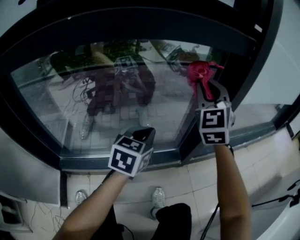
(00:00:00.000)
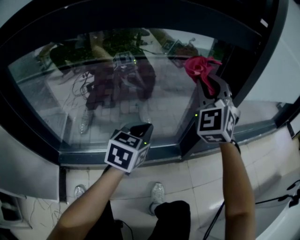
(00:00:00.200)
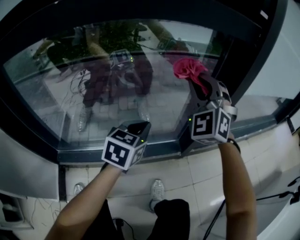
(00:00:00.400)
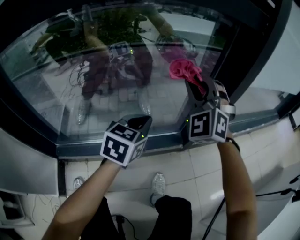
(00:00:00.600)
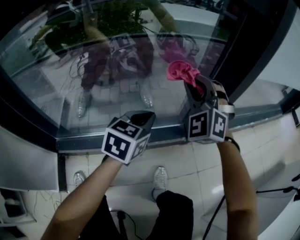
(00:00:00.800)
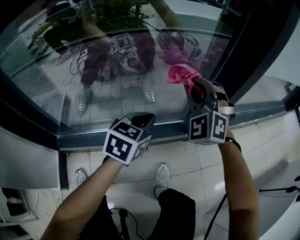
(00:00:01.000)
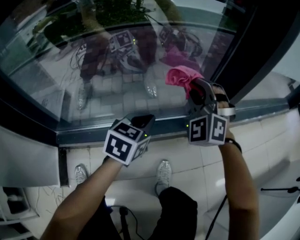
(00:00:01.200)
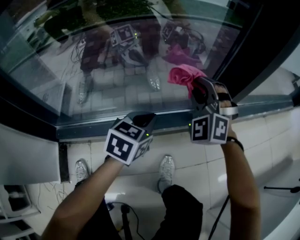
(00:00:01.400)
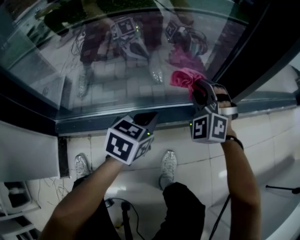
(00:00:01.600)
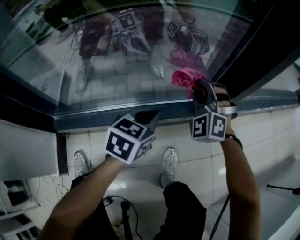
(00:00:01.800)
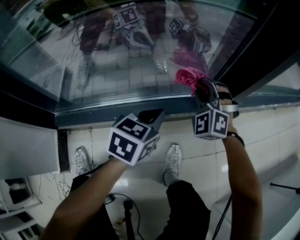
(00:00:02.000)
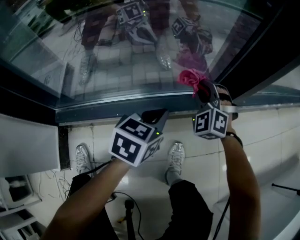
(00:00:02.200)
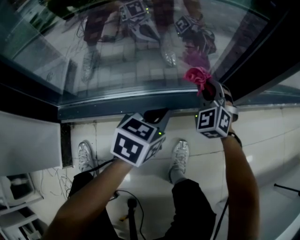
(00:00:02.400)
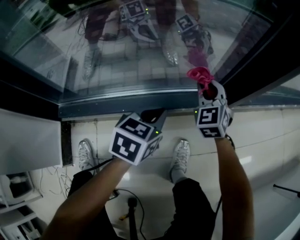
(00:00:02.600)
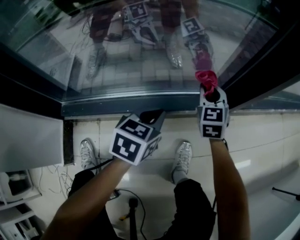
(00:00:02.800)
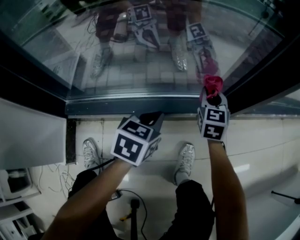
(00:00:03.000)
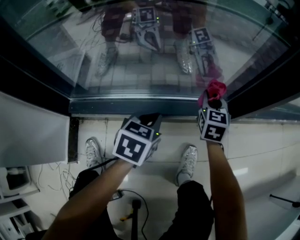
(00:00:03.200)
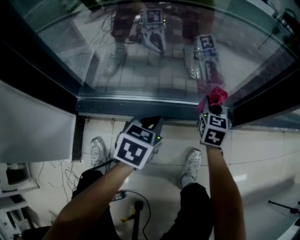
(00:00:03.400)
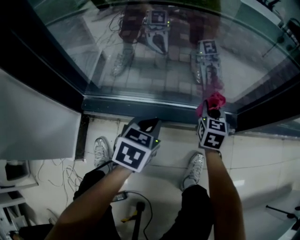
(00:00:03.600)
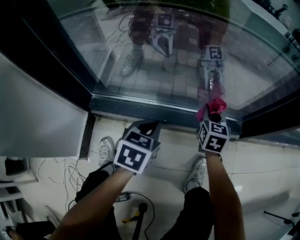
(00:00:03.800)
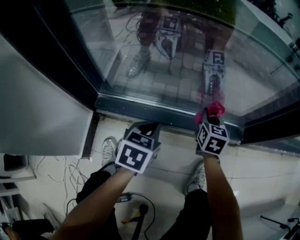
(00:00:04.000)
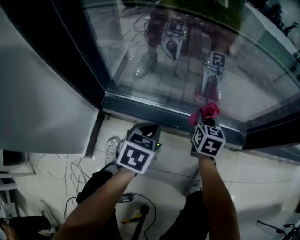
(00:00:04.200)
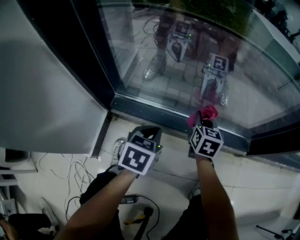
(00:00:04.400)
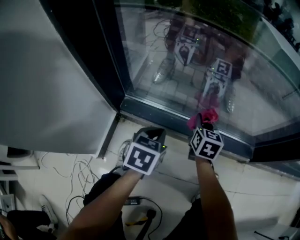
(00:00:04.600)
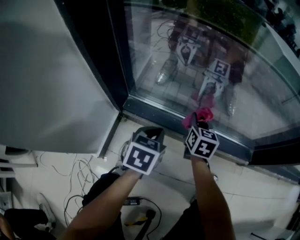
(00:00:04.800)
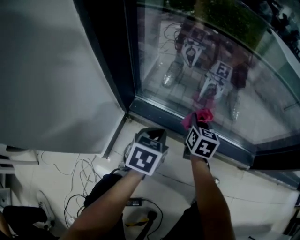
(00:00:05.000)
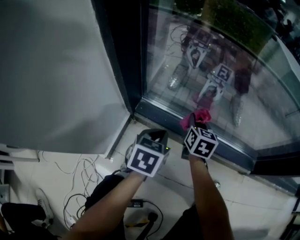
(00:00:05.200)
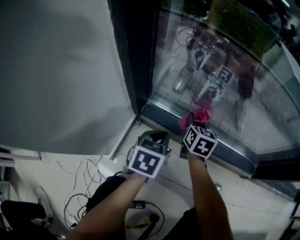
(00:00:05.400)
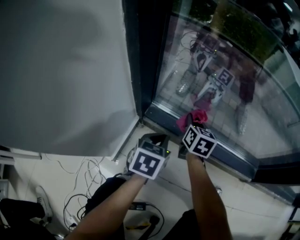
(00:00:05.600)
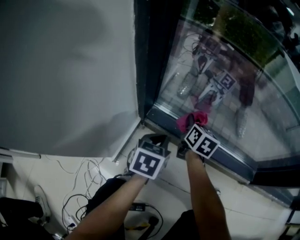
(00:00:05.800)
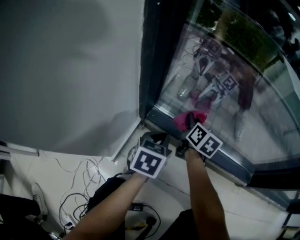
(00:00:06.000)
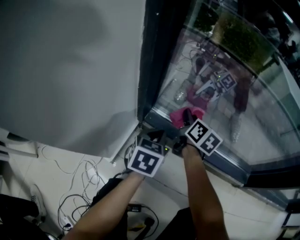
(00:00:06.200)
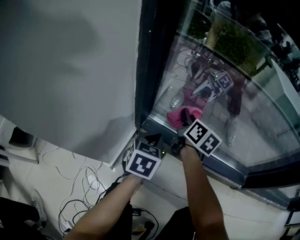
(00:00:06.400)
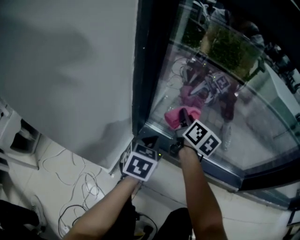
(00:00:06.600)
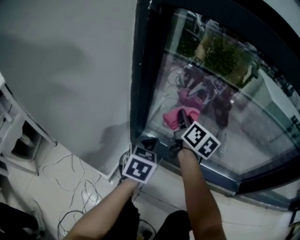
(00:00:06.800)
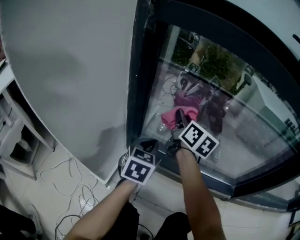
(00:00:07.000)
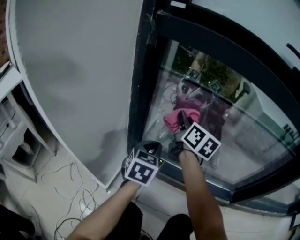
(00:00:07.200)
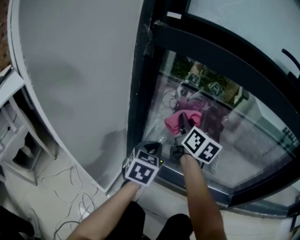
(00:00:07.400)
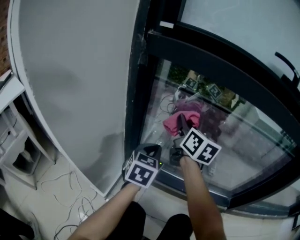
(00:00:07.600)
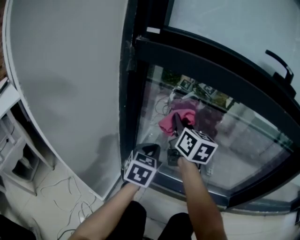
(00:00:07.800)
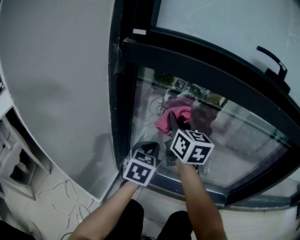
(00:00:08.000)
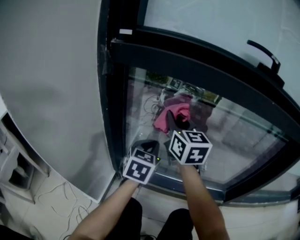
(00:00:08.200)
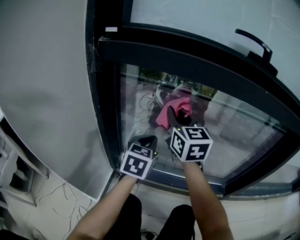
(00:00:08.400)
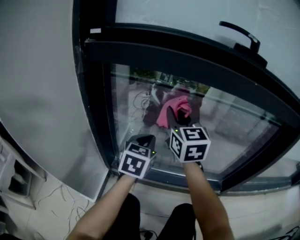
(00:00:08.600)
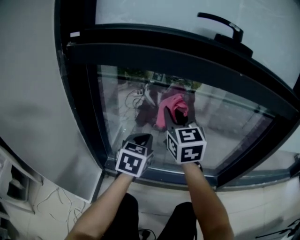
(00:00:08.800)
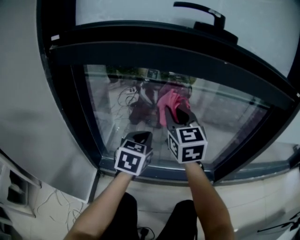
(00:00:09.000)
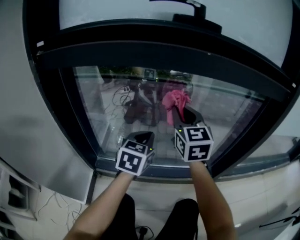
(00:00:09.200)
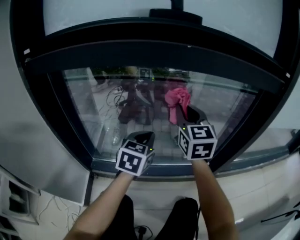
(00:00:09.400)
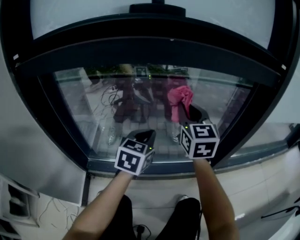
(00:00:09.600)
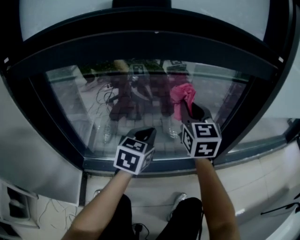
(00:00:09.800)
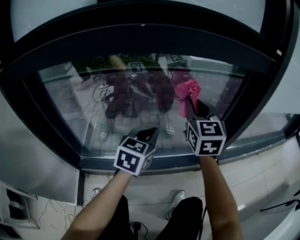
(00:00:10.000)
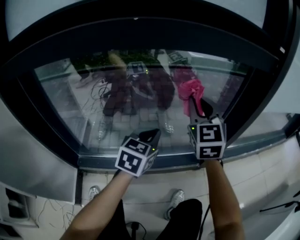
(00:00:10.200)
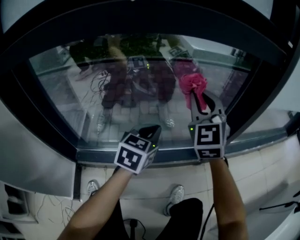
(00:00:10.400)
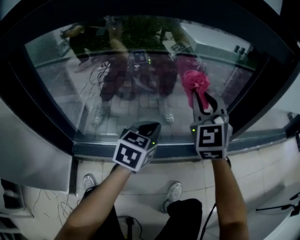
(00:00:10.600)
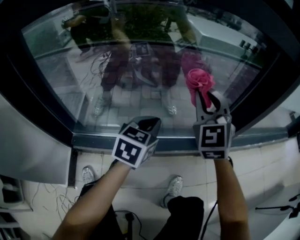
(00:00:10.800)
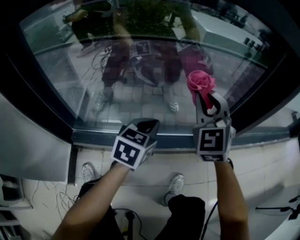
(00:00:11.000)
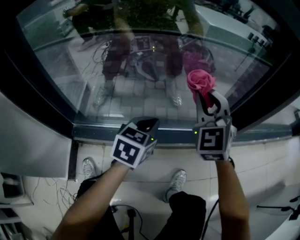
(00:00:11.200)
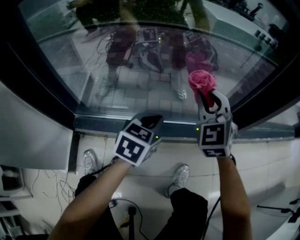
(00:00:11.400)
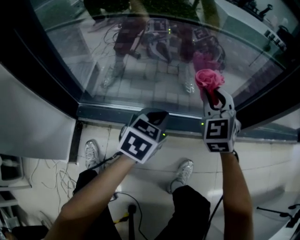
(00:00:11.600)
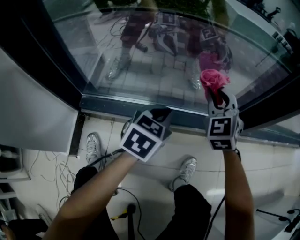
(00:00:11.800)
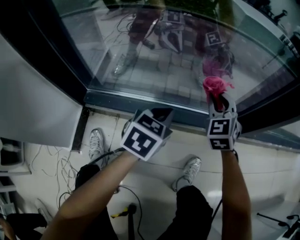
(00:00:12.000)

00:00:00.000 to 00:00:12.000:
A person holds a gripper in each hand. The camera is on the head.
00:00:00.000 to 00:00:01.600: The left gripper is displaced downward by roughly 20 cm. The right gripper moves downward, about 30 cm, and turns by about 40 degrees.
00:00:01.600 to 00:00:03.000: The right gripper moves downward, approximately 10 cm, and rolls clockwise, seen from behind, by roughly 60 degrees; the left gripper travels to the left and downward by roughly 10 cm.
00:00:03.000 to 00:00:04.400: Both grippers move to the left, roughly 25 cm.
00:00:04.400 to 00:00:06.000: The right gripper goes about 25 cm to the left, and swivels about 20 degrees; the left gripper moves to the left, approximately 15 cm.
00:00:06.000 to 00:00:07.600: The right gripper travels upward by approximately 35 cm, and swivels about 30 degrees; the left gripper goes some 20 cm upward, and turns by some 20 degrees.
00:00:07.600 to 00:00:09.000: Both grippers move to the right, some 20 cm. The right gripper changes its angle by approximately 40 degrees.
00:00:09.000 to 00:00:10.400: Both grippers travel together to the right, roughly 25 cm. The right gripper turns by about 30 degrees.
00:00:10.400 to 00:00:12.000: The right gripper shifts approximately 30 cm downward, and changes its angle by approximately 20 degrees. The left gripper goes some 15 cm downward.

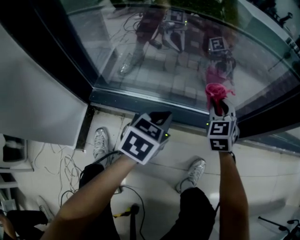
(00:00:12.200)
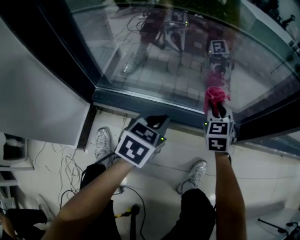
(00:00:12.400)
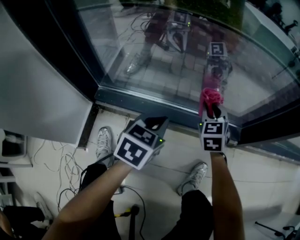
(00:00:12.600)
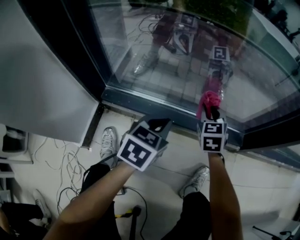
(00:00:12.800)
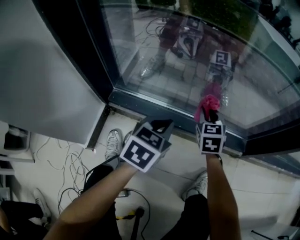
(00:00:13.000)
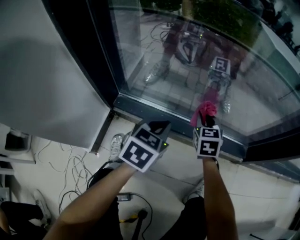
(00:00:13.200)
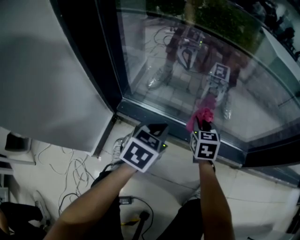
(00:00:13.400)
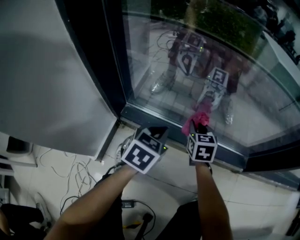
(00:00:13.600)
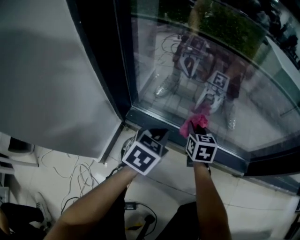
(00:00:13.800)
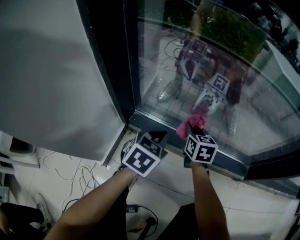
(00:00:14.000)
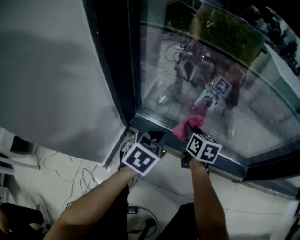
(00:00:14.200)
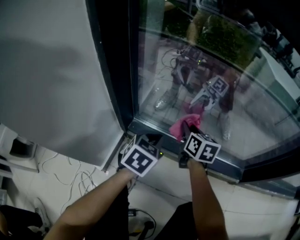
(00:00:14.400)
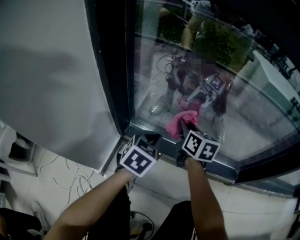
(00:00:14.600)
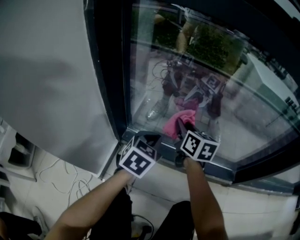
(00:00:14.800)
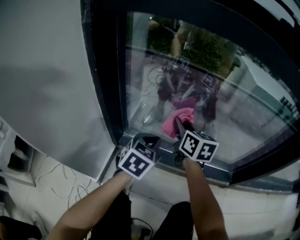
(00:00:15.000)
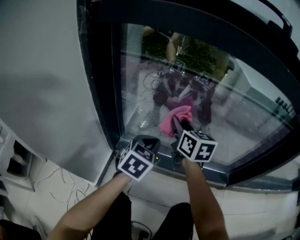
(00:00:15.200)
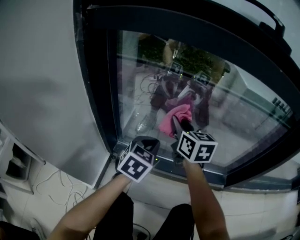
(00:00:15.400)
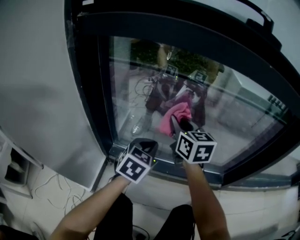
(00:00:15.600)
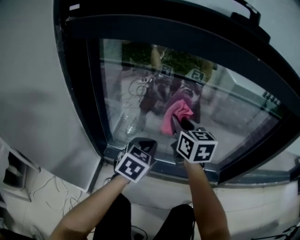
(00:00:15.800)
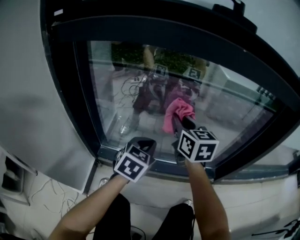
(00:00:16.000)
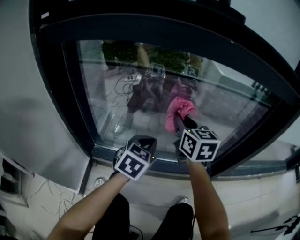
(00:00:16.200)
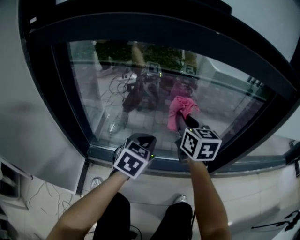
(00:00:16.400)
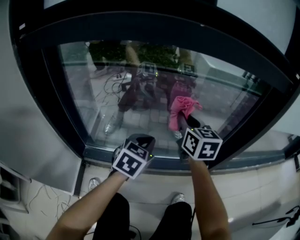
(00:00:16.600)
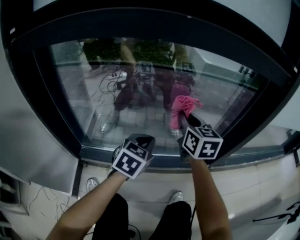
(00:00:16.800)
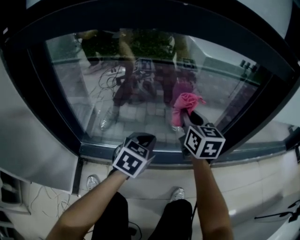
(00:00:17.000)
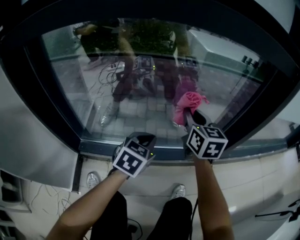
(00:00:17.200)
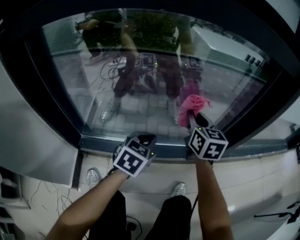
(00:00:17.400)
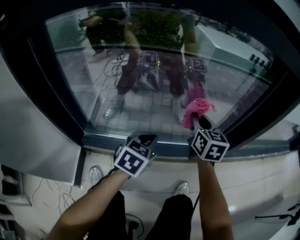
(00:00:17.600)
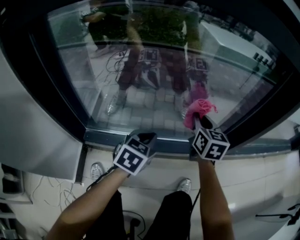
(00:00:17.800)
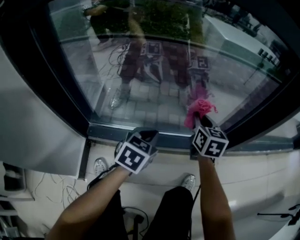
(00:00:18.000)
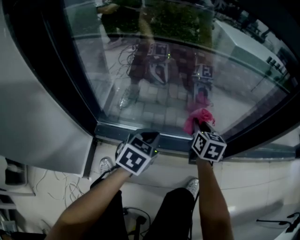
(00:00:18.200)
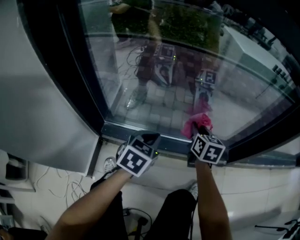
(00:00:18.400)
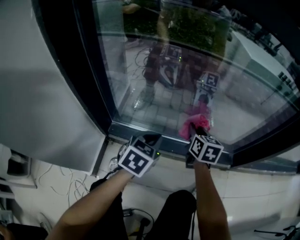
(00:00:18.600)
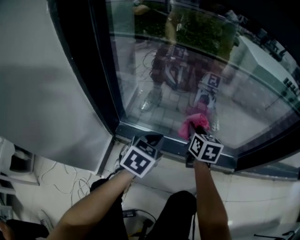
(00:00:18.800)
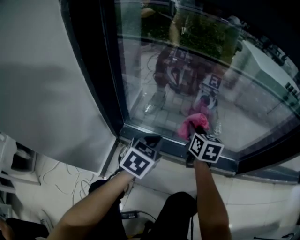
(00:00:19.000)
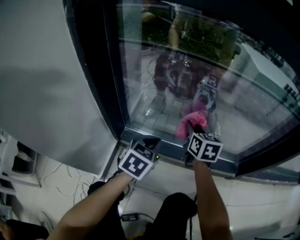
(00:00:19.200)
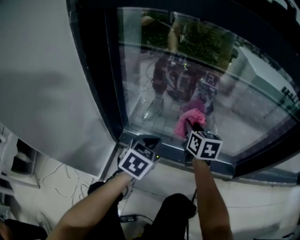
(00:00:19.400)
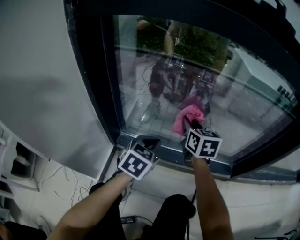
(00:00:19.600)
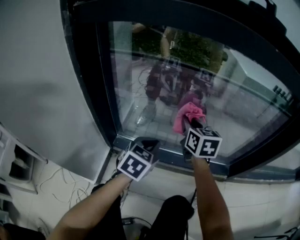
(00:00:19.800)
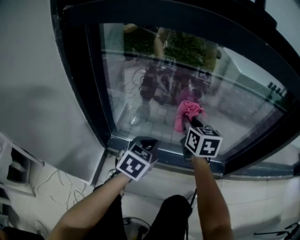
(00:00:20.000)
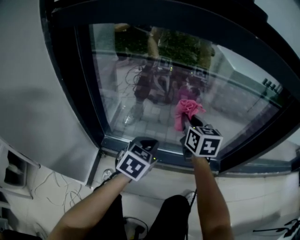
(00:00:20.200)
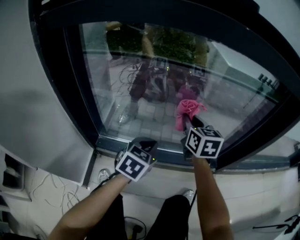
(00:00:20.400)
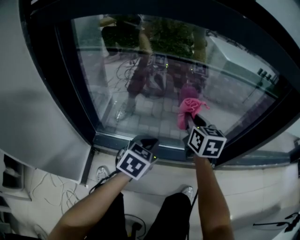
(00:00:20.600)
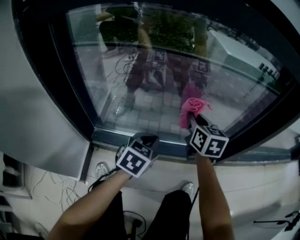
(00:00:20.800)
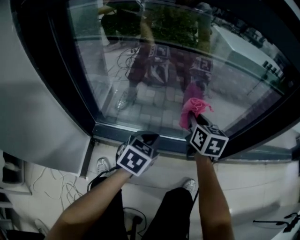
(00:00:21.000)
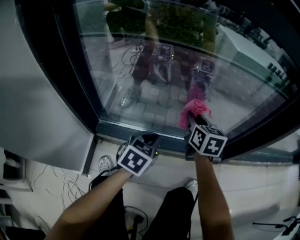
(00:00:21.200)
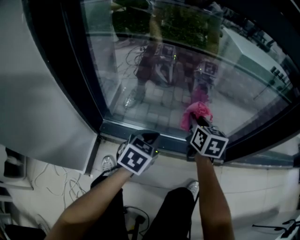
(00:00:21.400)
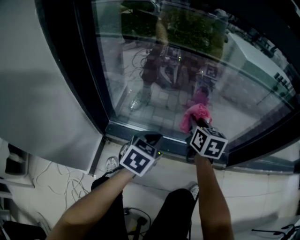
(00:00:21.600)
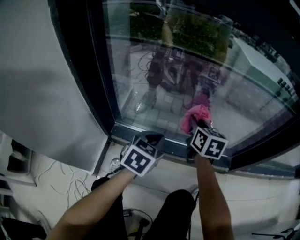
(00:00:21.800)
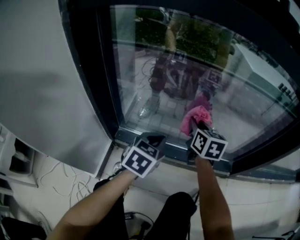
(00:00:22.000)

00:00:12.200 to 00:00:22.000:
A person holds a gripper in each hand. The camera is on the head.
00:00:12.200 to 00:00:13.600: Both grippers move to the left, about 20 cm. The right gripper swivels roughly 30 degrees.
00:00:13.600 to 00:00:15.000: The left gripper shifts approximately 10 cm upward. Meanwhile the right gripper is displaced upward and to the left by roughly 20 cm, and changes its angle by approximately 30 degrees.
00:00:15.000 to 00:00:16.400: The left gripper moves to the right, approximately 20 cm. Meanwhile the right gripper goes some 25 cm to the right and upward, and changes its angle by about 20 degrees.
00:00:16.400 to 00:00:17.800: The right gripper heads downward and to the right, covering roughly 15 cm. Meanwhile the left gripper goes about 10 cm downward.
00:00:17.800 to 00:00:19.200: Both grippers move to the left, roughly 20 cm.
00:00:19.200 to 00:00:20.600: The right gripper travels to the right and upward by some 15 cm, while the left gripper travels to the right by roughly 15 cm.
00:00:20.600 to 00:00:22.000: Both grippers travel together to the left, some 10 cm.

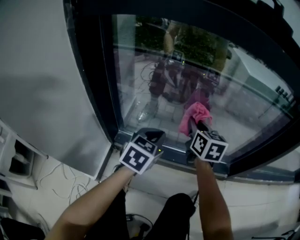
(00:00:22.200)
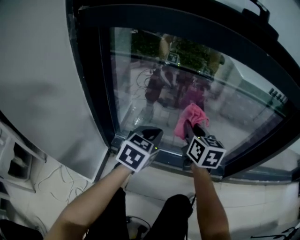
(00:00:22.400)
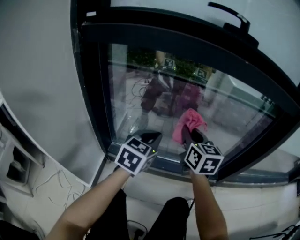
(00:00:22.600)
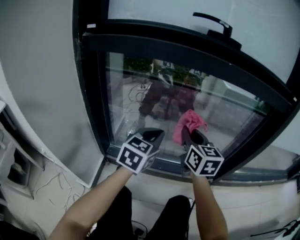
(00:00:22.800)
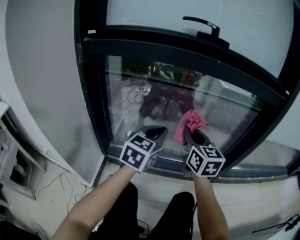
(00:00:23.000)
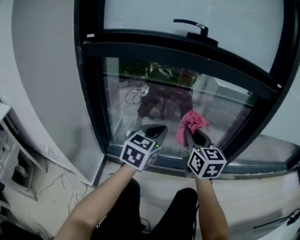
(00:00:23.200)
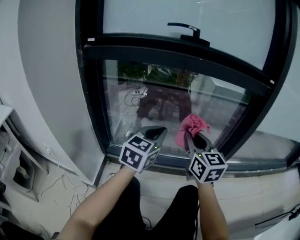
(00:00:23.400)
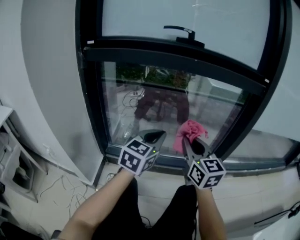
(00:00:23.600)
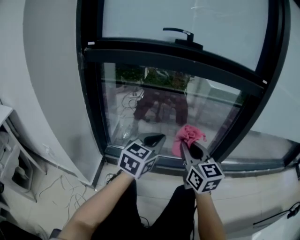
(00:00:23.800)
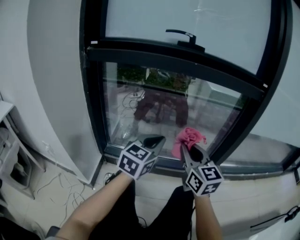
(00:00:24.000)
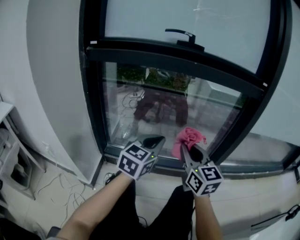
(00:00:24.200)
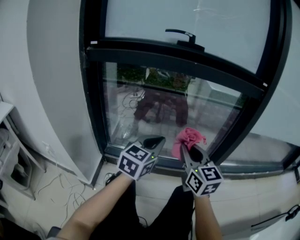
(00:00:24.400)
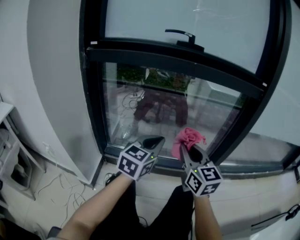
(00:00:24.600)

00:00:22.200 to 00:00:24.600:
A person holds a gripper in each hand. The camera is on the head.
00:00:22.200 to 00:00:23.400: The left gripper travels upward, to the right and backward by roughly 20 cm, and turns by approximately 20 degrees; the right gripper heads backward, upward and to the right, covering about 25 cm.
00:00:23.400 to 00:00:24.600: The right gripper shifts approximately 5 cm backward.
